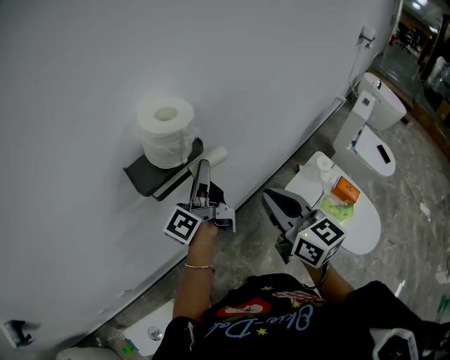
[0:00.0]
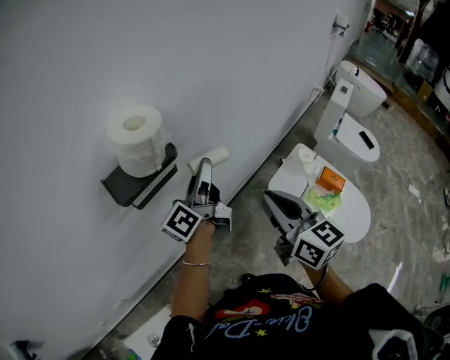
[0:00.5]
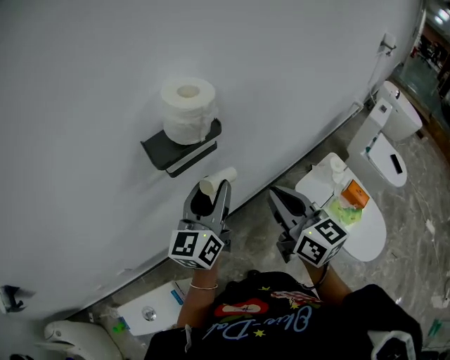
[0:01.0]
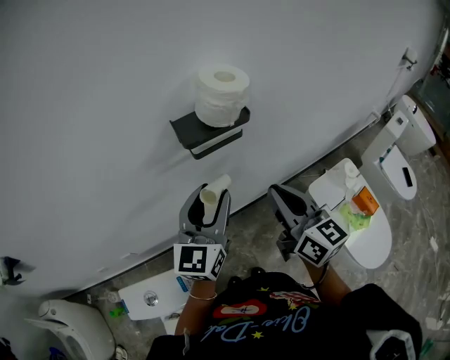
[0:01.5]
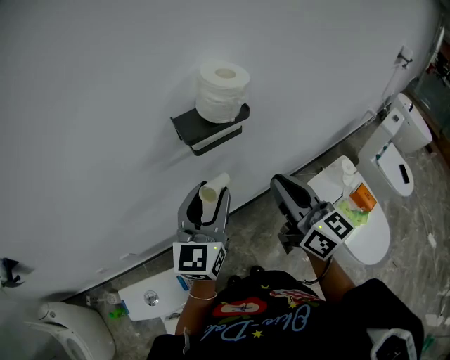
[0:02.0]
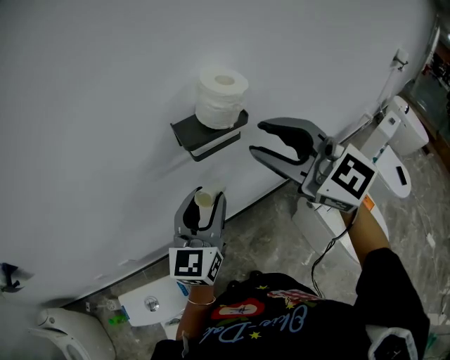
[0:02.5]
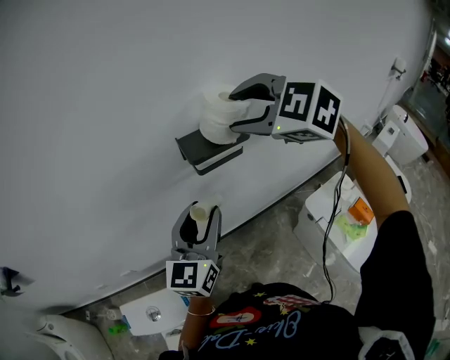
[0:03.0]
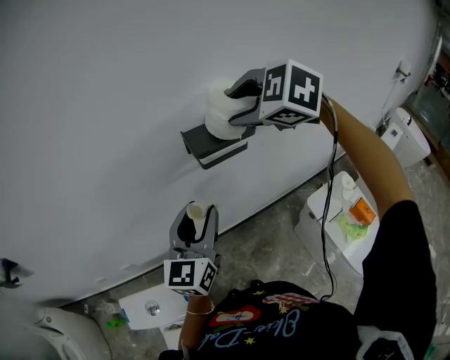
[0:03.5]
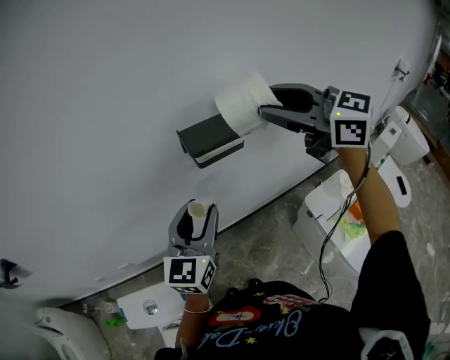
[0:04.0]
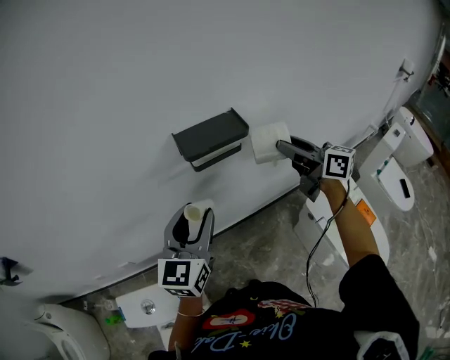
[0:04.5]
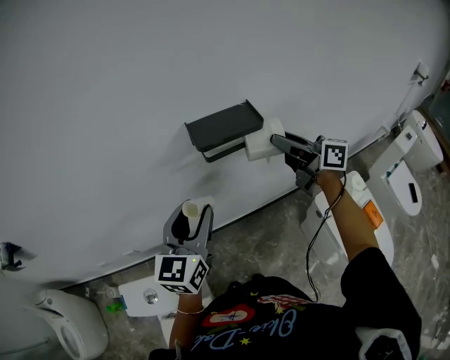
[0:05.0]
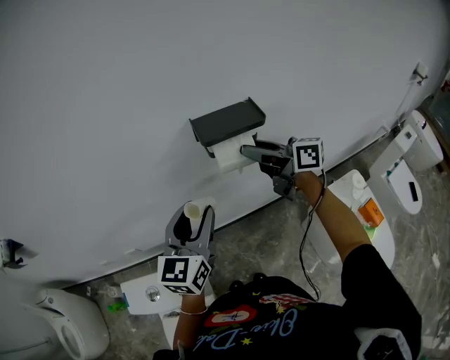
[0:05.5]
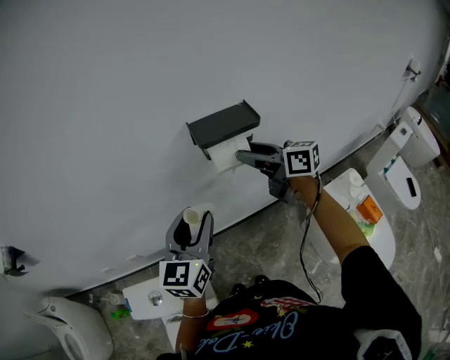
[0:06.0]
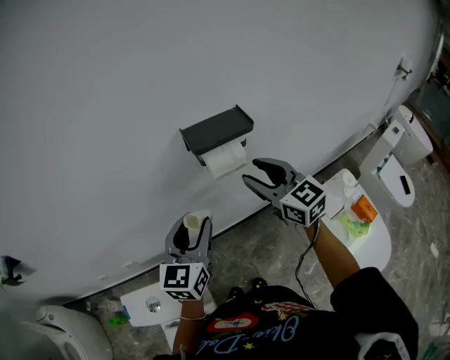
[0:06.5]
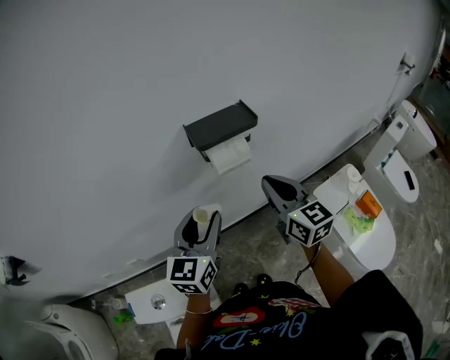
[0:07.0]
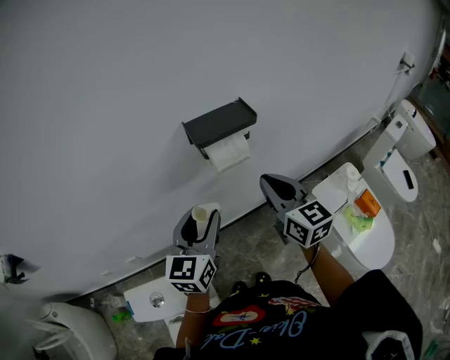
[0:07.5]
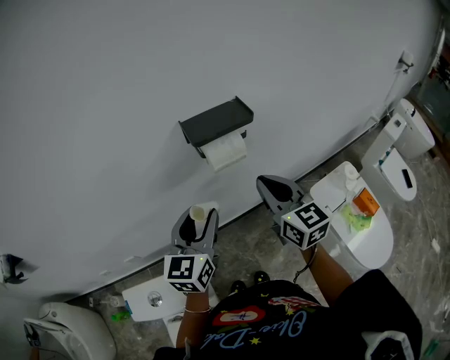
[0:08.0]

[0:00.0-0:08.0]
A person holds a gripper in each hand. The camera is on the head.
0:00.0 to 0:02.0: The right gripper goes approximately 5 cm to the left, while the left gripper heads backward and to the left, covering about 20 cm, and rotates around the line of its fingers by approximately 70 degrees, clockwise from behind.
0:02.0 to 0:04.0: The right gripper heads upward and forward, covering about 20 cm, swivels about 40 degrees, and opens.
0:04.0 to 0:06.0: The right gripper shifts approximately 20 cm downward, and swivels approximately 40 degrees.
0:06.0 to 0:08.0: The right gripper heads backward, covering roughly 10 cm, swivels about 40 degrees, and closes.

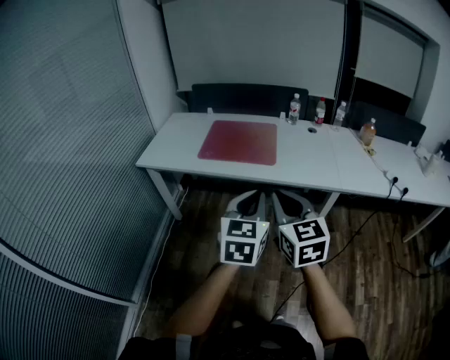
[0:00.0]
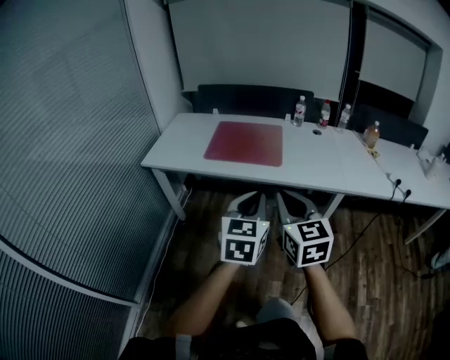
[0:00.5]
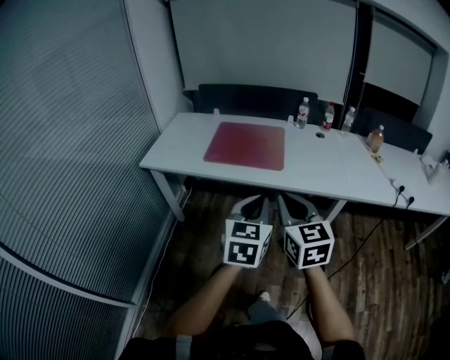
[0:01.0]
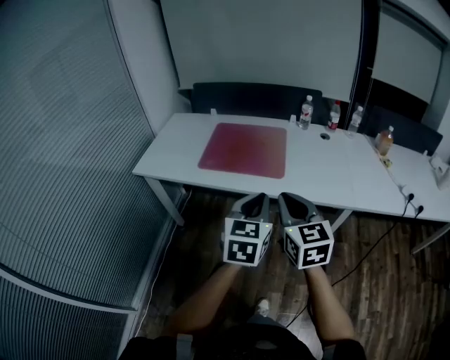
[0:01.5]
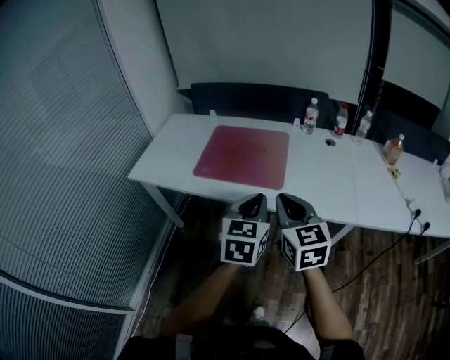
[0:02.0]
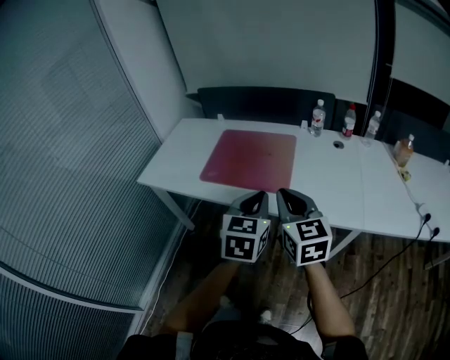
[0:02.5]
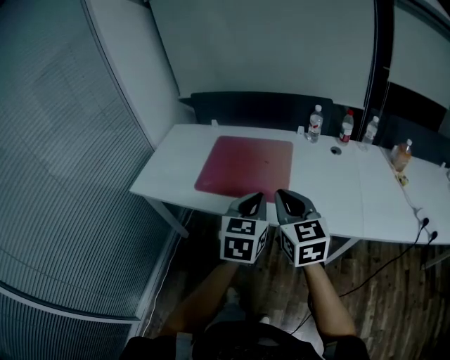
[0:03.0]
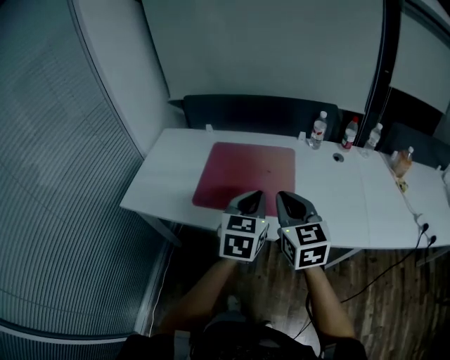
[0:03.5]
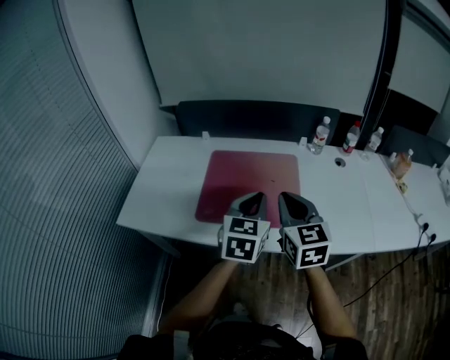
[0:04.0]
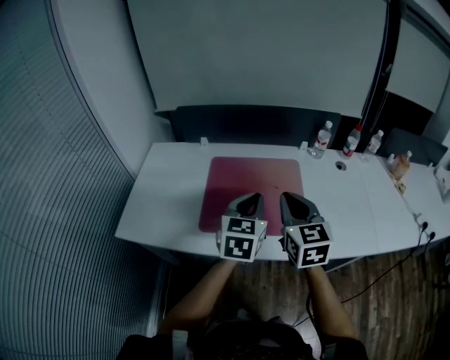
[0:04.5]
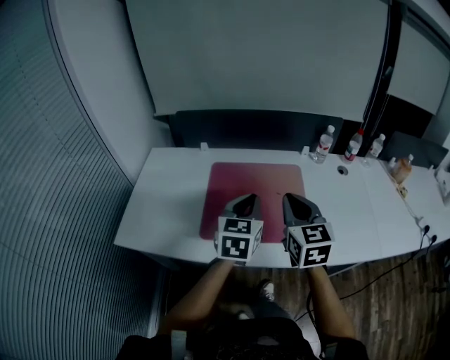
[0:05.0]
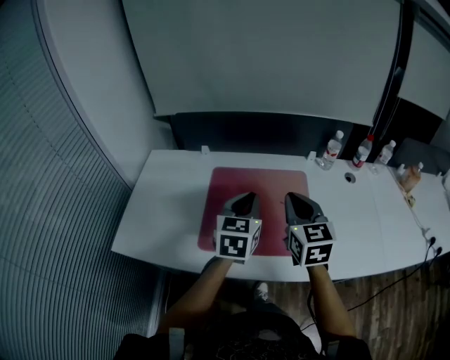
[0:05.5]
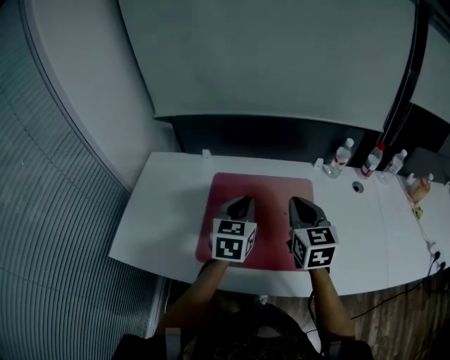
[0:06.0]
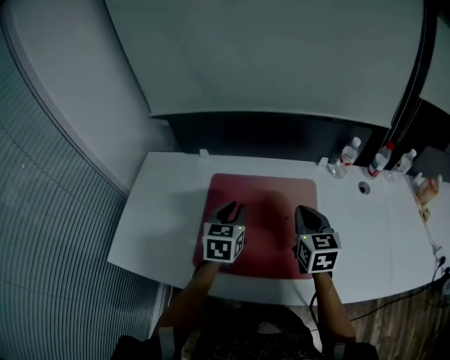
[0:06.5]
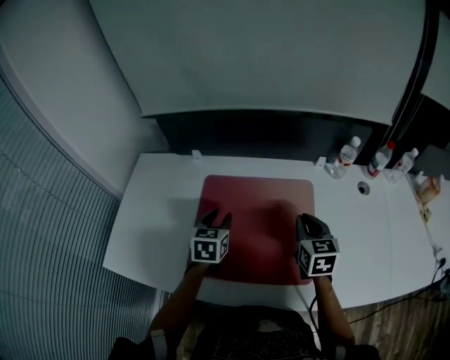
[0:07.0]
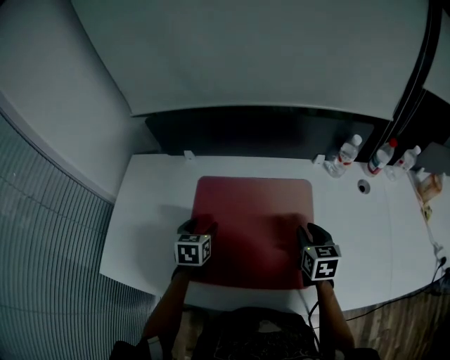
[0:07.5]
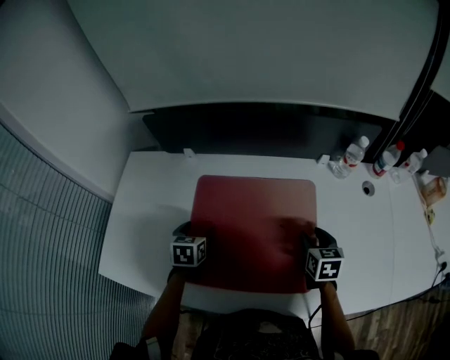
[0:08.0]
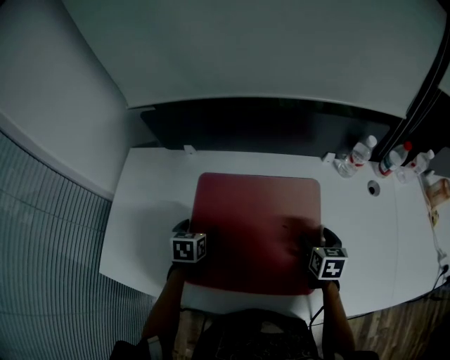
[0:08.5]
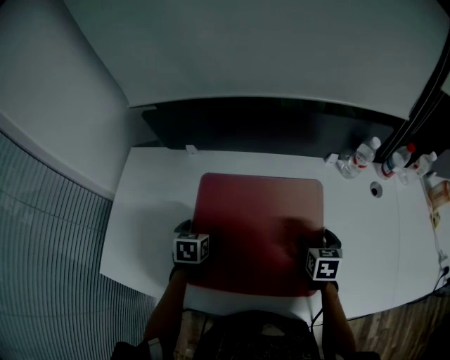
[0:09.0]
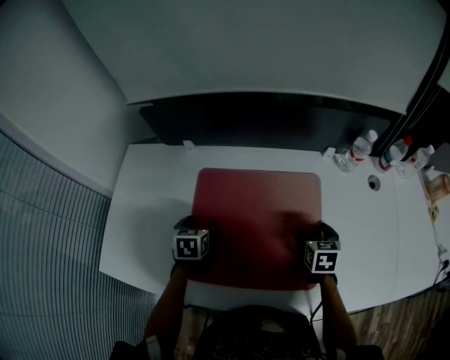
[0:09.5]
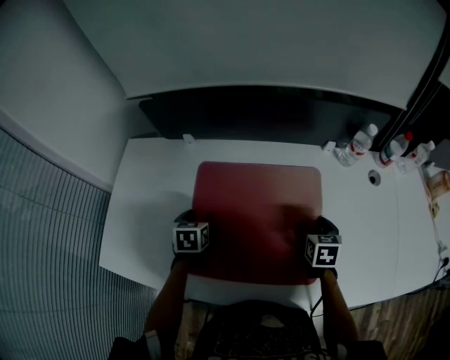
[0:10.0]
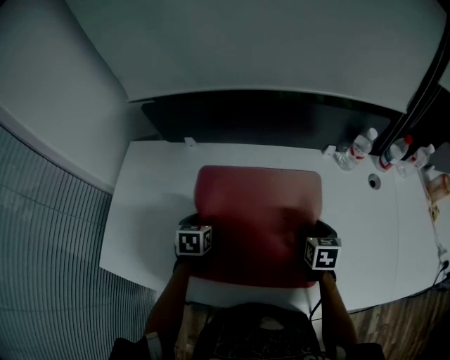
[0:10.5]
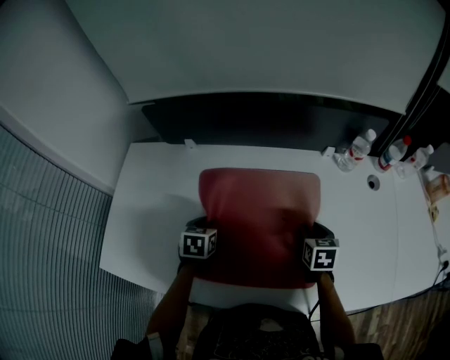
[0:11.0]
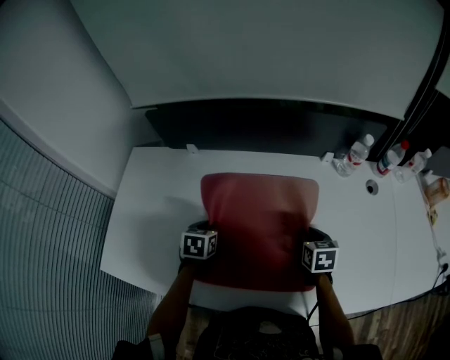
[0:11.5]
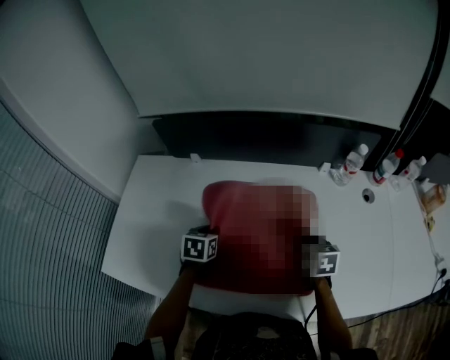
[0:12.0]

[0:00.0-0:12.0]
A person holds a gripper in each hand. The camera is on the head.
0:00.0 to 0:02.0: The two grippers go approximately 20 cm forward.
0:02.0 to 0:04.0: The right gripper goes about 20 cm forward. Meanwhile the left gripper is displaced forward and to the left by roughly 25 cm.
0:04.0 to 0:06.0: The left gripper is displaced forward and to the left by approximately 20 cm. The right gripper is displaced forward by roughly 20 cm.
0:06.0 to 0:08.0: The left gripper moves downward and to the left, approximately 25 cm, swivels roughly 30 degrees, and opens its fingers. The right gripper shifts approximately 25 cm downward and to the right, turns by roughly 30 degrees, and opens.
0:08.0 to 0:10.0: The grippers stay close to where they were, moving slightly.
0:10.0 to 0:12.0: The left gripper ends up some 5 cm from where it was, and closes its fingers. The right gripper closes up.

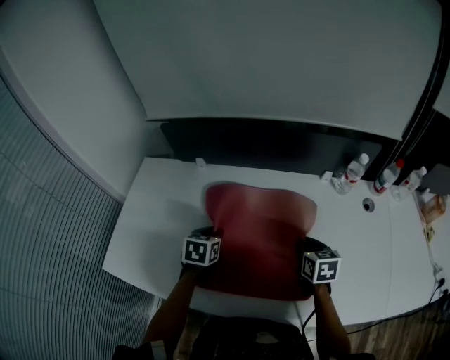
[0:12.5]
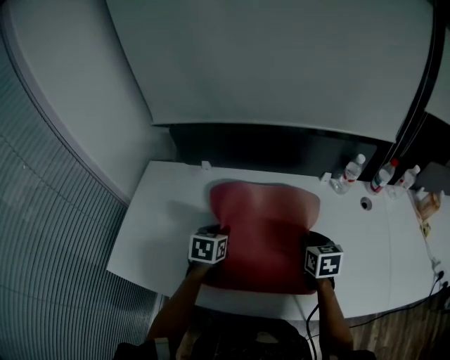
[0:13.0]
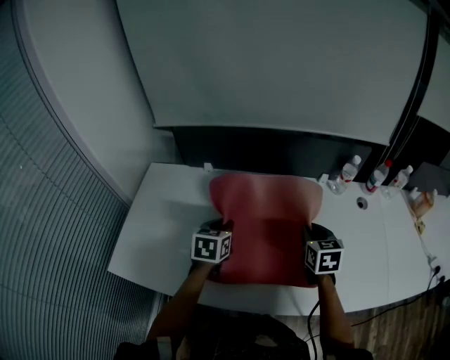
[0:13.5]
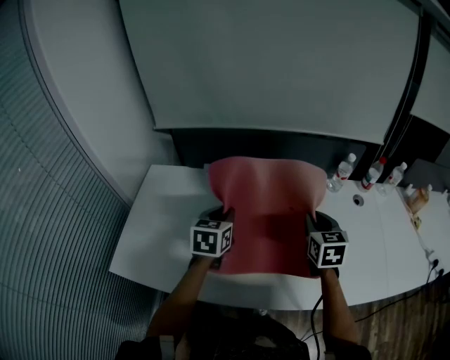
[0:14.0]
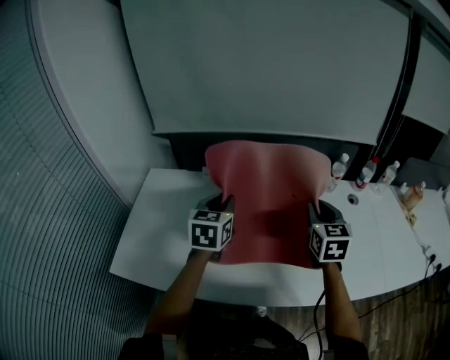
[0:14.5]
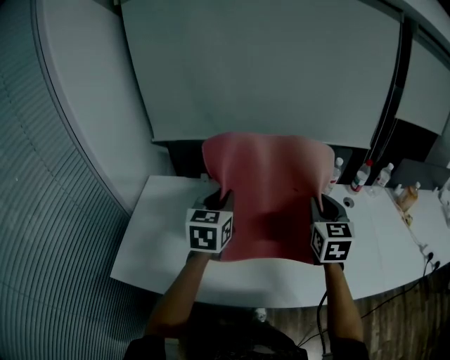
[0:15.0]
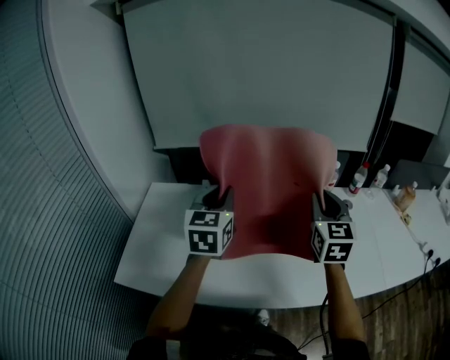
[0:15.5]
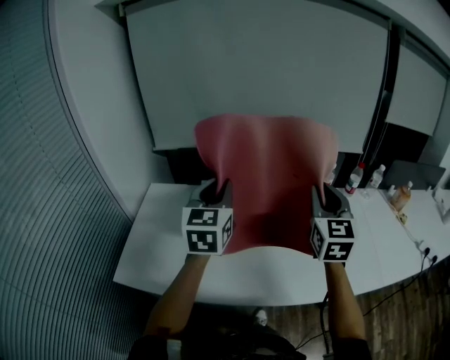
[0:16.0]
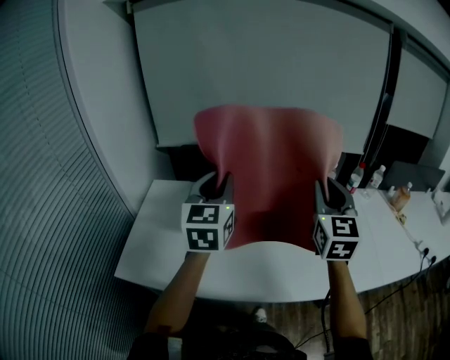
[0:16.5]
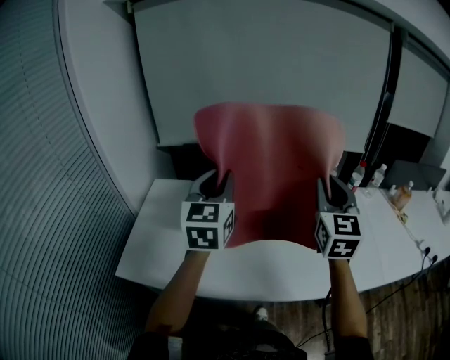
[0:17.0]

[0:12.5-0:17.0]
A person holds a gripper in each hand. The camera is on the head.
0:12.5 to 0:14.5: The grippers both shift upward by some 20 cm. The right gripper turns by roughly 30 degrees, while the left gripper changes its angle by roughly 30 degrees.
0:14.5 to 0:17.0: The grippers both shift upward and backward by roughly 20 cm. The left gripper turns by some 20 degrees; the right gripper changes its angle by some 20 degrees.

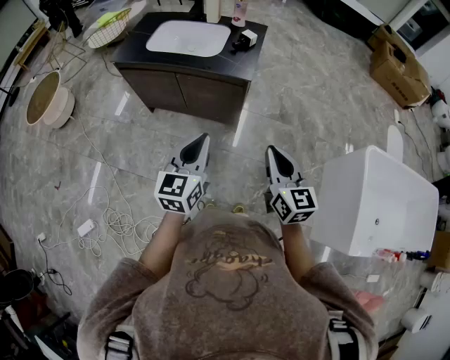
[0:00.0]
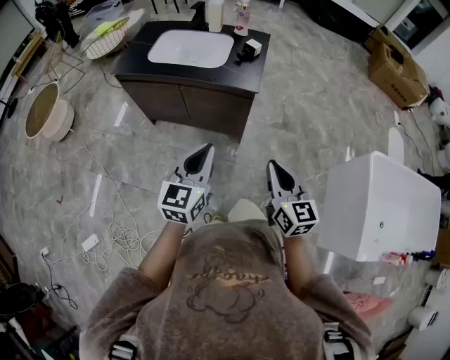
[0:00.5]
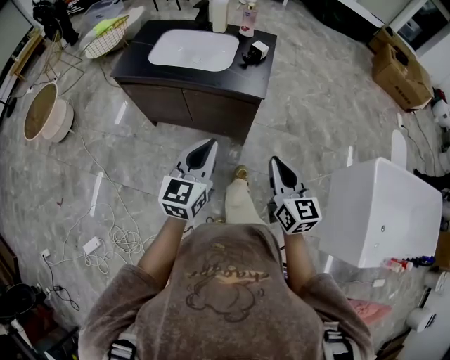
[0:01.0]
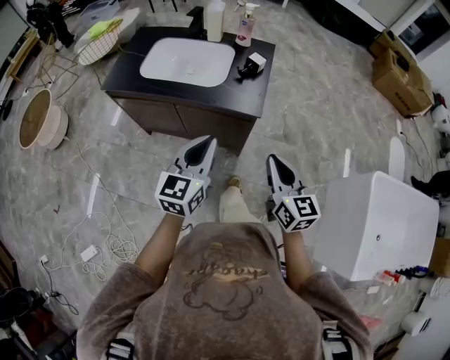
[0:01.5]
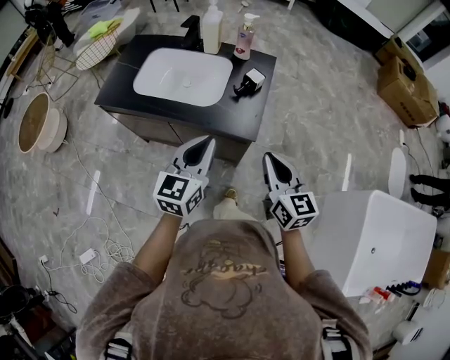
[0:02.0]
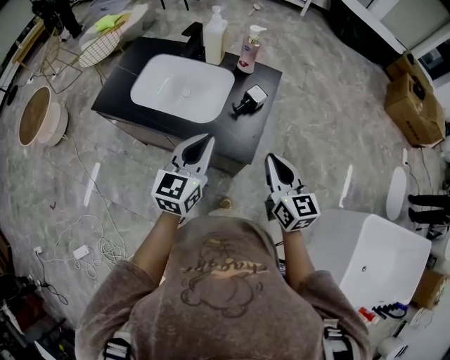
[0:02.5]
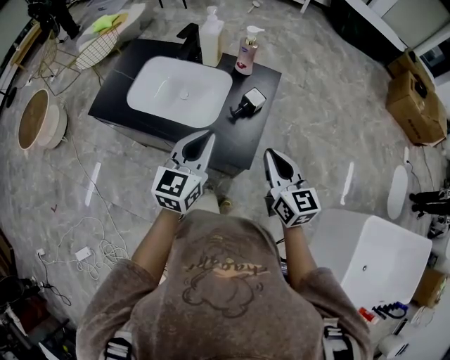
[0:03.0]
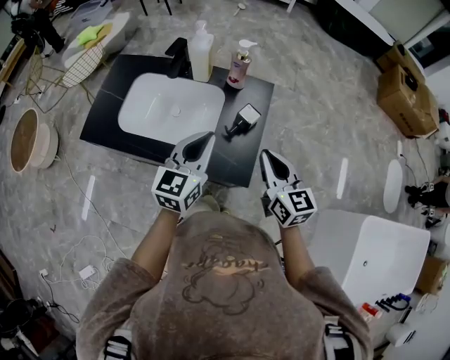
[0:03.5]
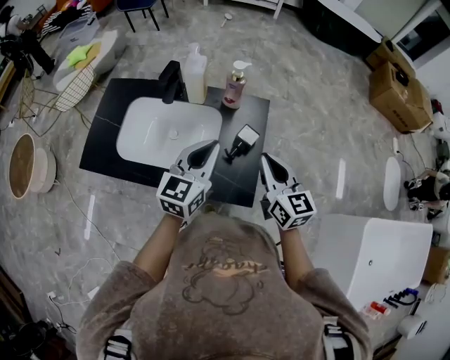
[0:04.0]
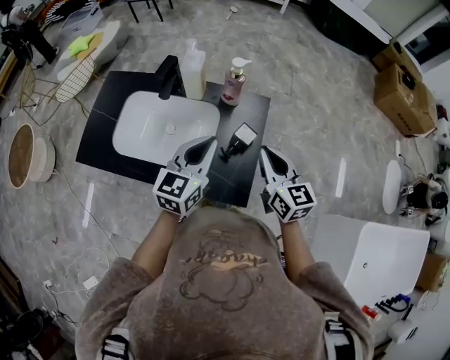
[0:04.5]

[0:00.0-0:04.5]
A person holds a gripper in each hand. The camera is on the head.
0:00.0 to 0:02.0: Both grippers move forward, roughly 30 cm.
0:02.0 to 0:04.5: The two grippers go about 30 cm forward.
